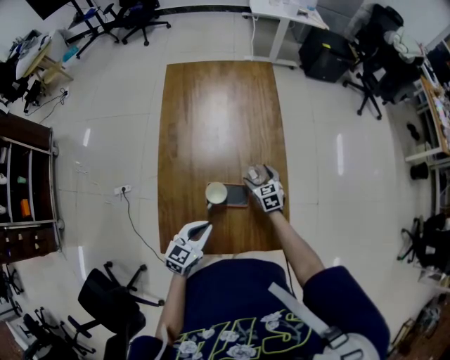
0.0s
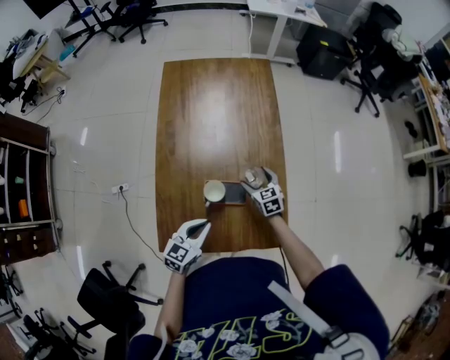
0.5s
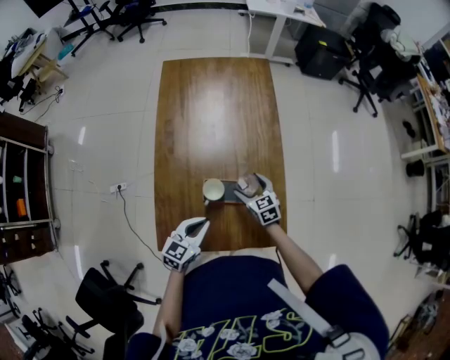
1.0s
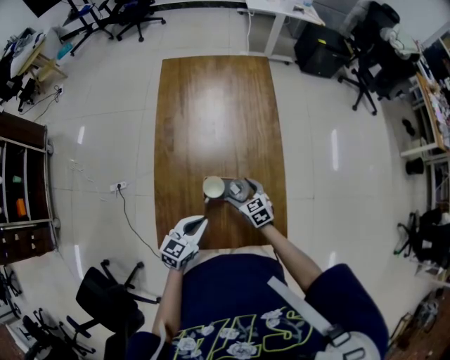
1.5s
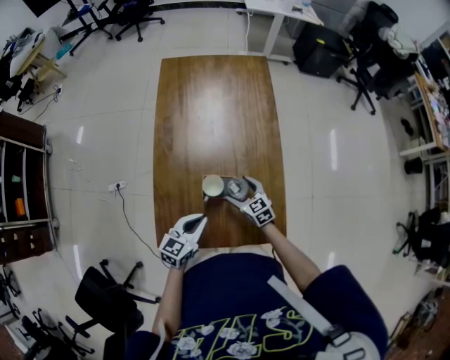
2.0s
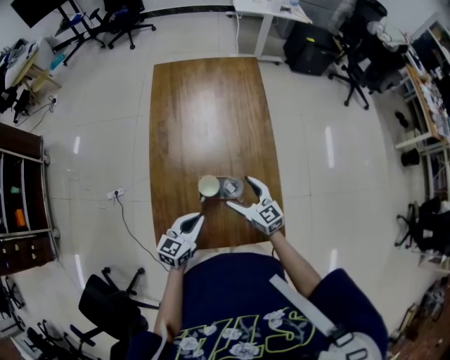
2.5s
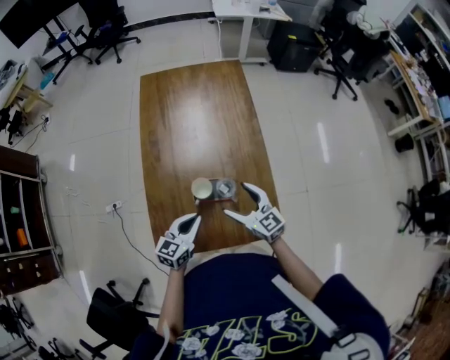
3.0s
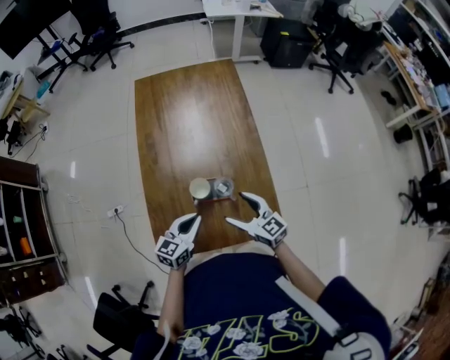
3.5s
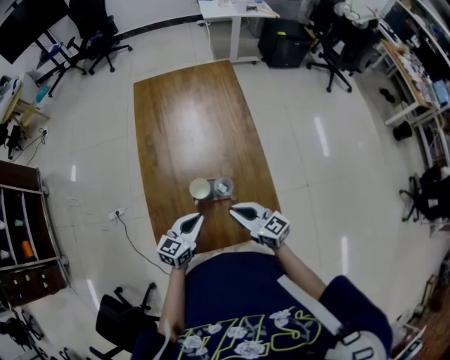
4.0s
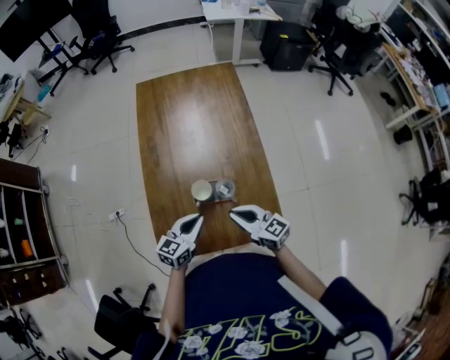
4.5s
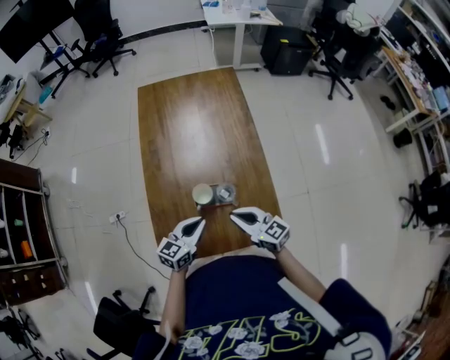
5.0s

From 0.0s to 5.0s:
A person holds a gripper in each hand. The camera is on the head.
From 0.0s to 2.5s: The right gripper heads backward, upward and to the left, covering approximately 15 cm, and rotates some 30 degrees.
From 2.5s to 5.0s: The right gripper moves backward and upward, approximately 10 cm, and closes its fingers.

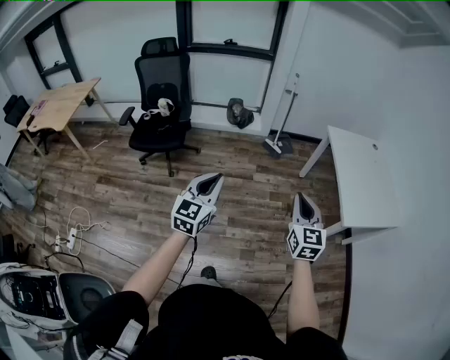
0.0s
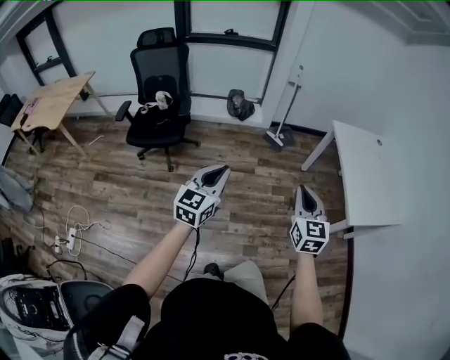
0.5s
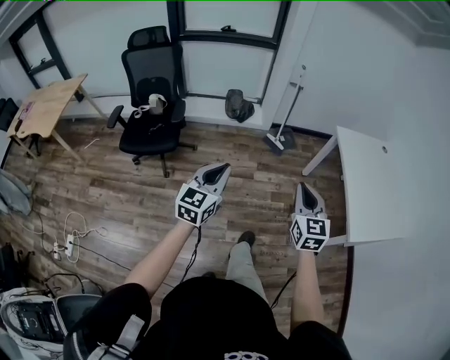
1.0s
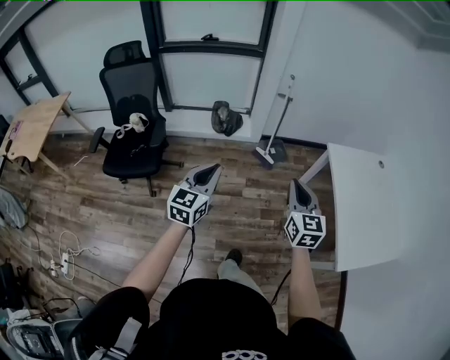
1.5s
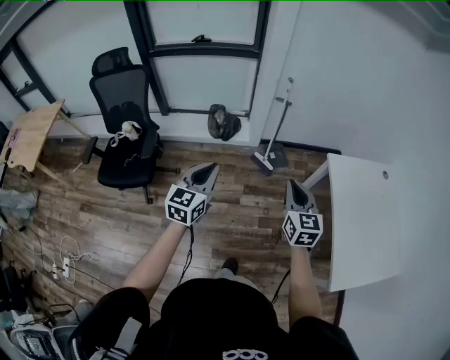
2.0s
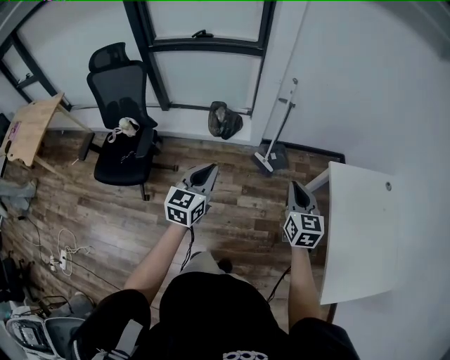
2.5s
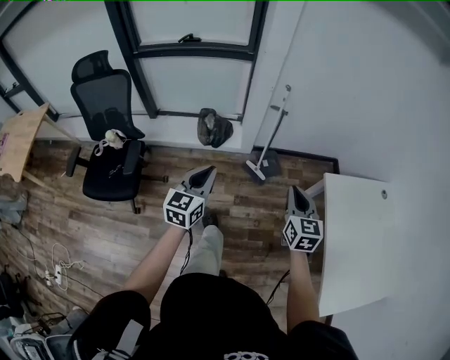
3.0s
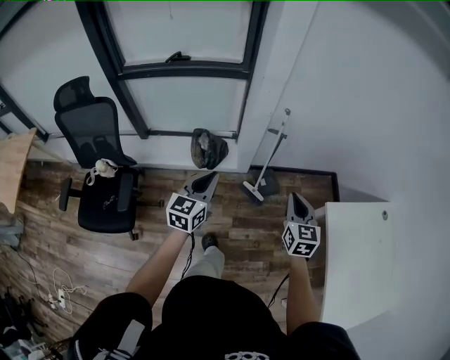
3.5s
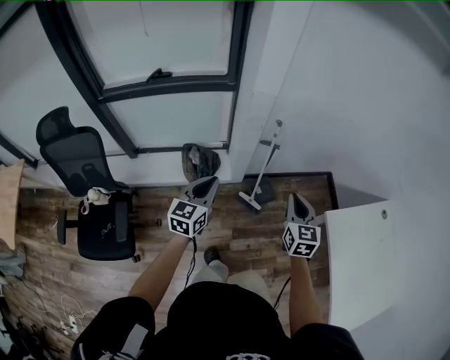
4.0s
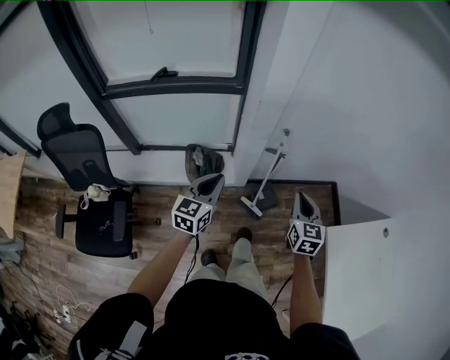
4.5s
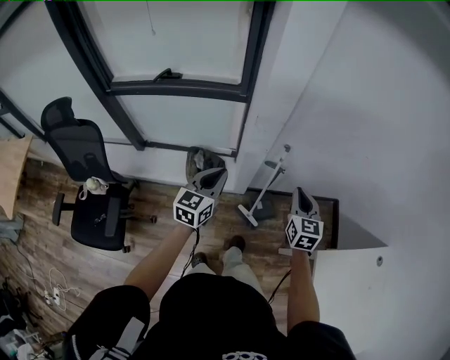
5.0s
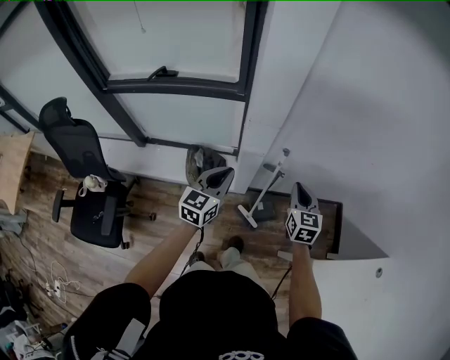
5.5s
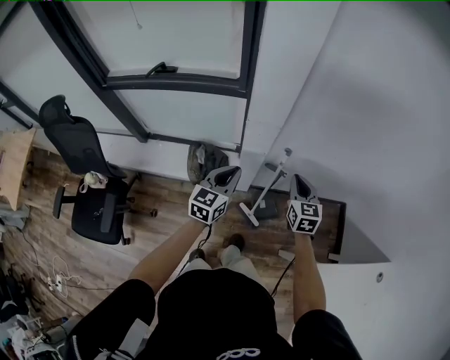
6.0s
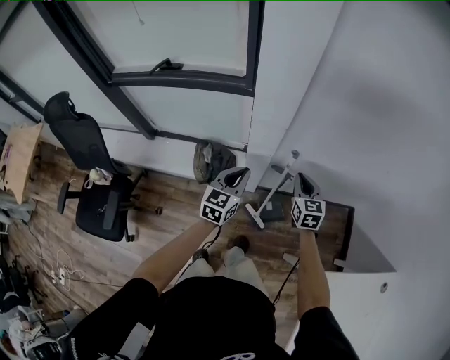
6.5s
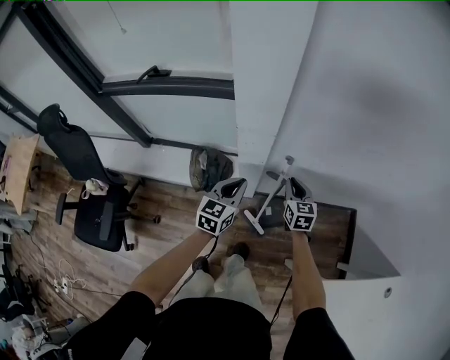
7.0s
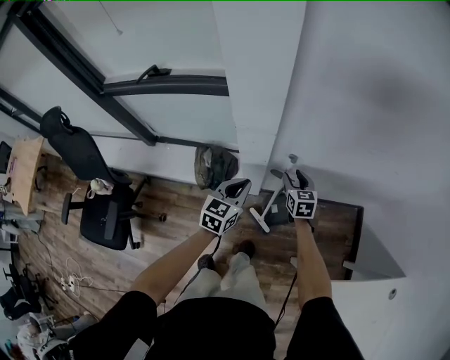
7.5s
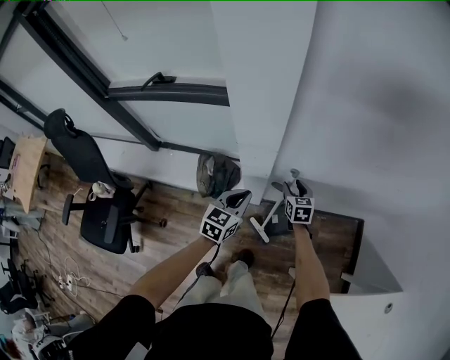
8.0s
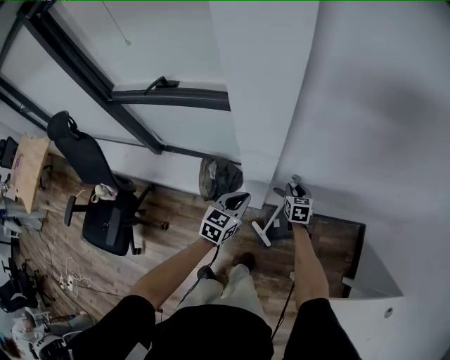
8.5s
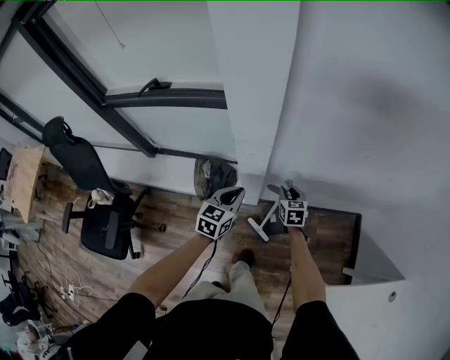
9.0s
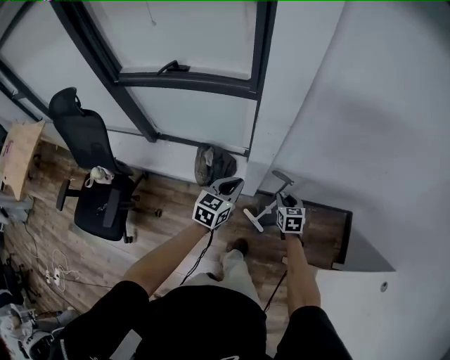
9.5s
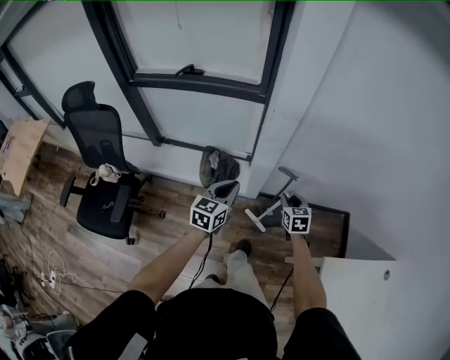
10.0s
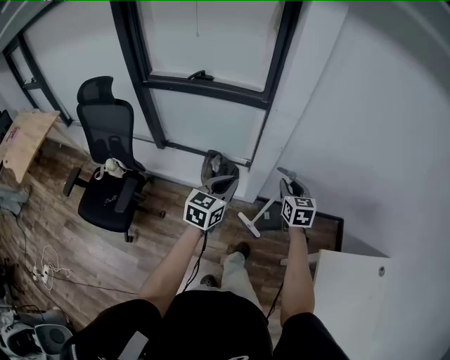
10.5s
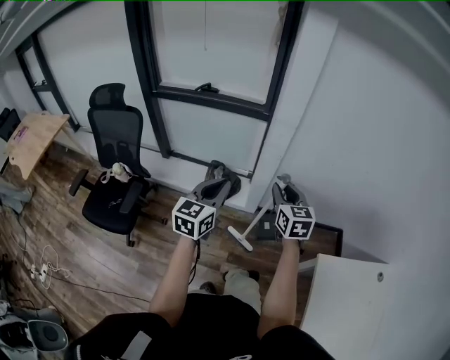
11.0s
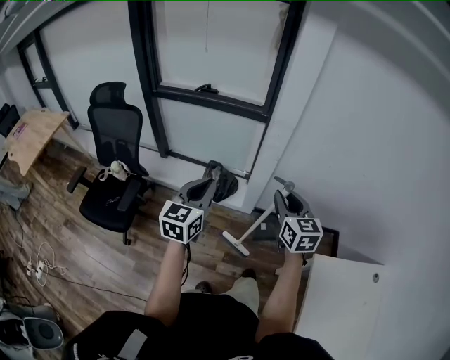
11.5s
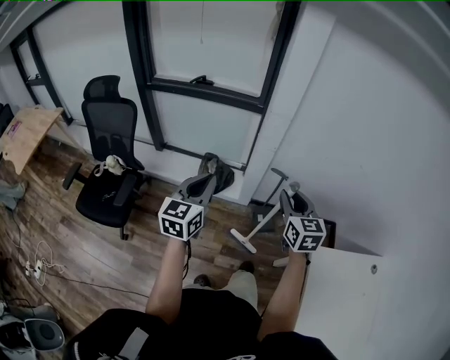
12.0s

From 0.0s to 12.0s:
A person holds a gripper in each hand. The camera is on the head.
From 0.0s to 2.0s: The pair of grippers is taken forward, roughly 50 cm.
From 2.0s to 4.0s: The two grippers travel together, forward, roughly 40 cm.
From 4.0s to 6.0s: Both grippers travel together forward, approximately 30 cm.
From 6.0s to 8.0s: The right gripper shifts approximately 25 cm downward and forward, and opens its fingers, while the left gripper heads downward and forward, covering approximately 10 cm.
From 8.0s to 10.0s: The left gripper goes about 25 cm backward, to the left and upward, while the right gripper travels backward and upward by roughly 25 cm.
From 10.0s to 12.0s: The left gripper heads backward and upward, covering roughly 25 cm; the right gripper travels upward and backward by some 35 cm, and swivels some 20 degrees.

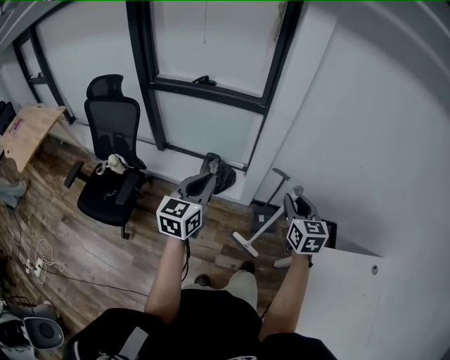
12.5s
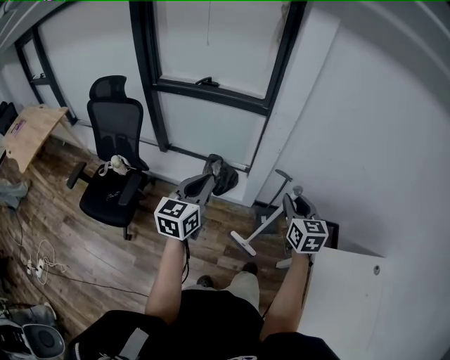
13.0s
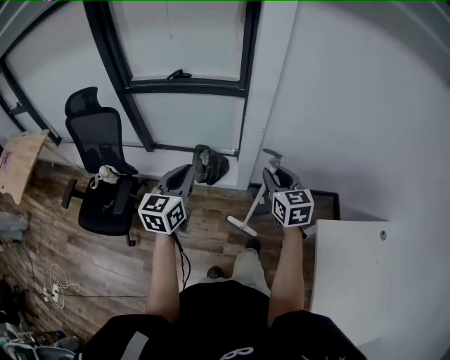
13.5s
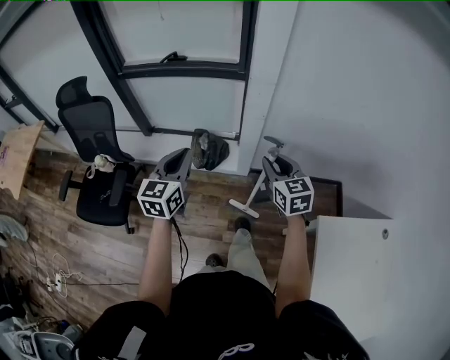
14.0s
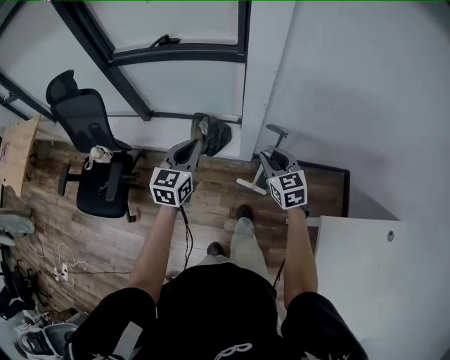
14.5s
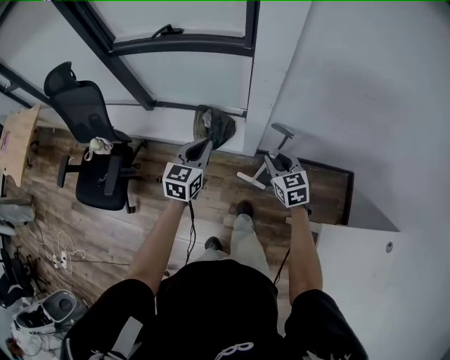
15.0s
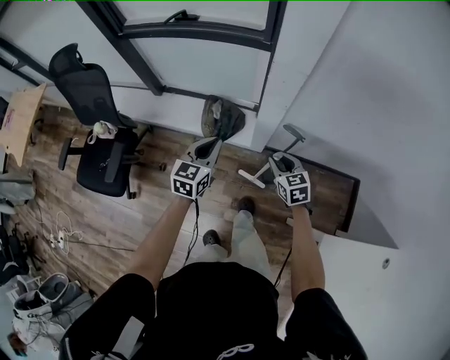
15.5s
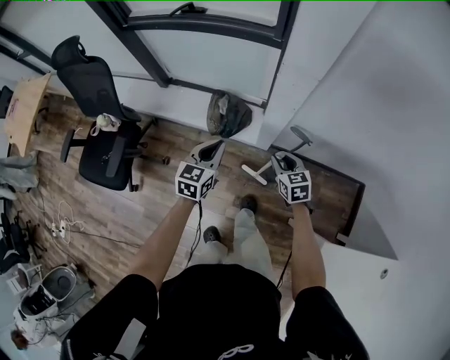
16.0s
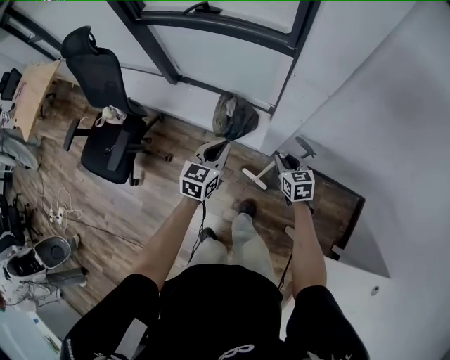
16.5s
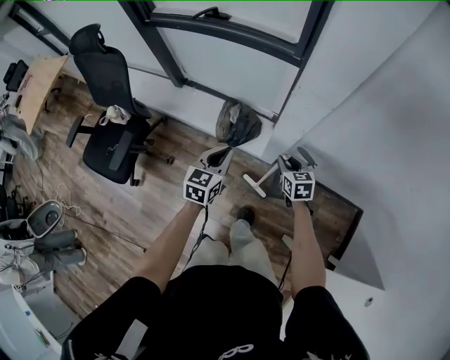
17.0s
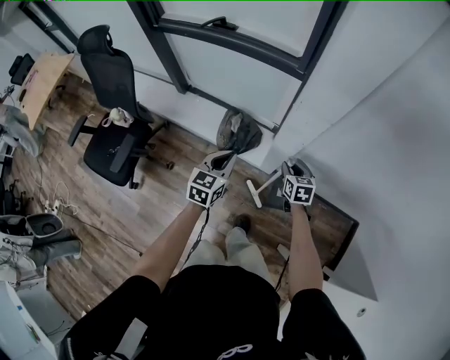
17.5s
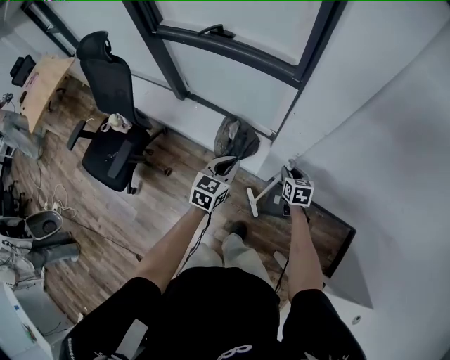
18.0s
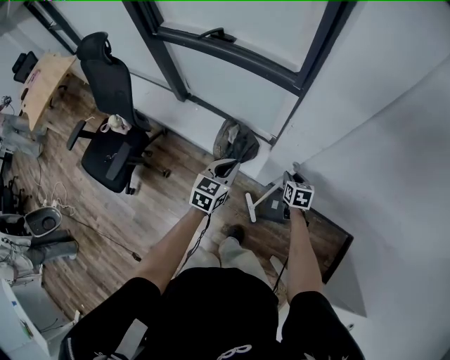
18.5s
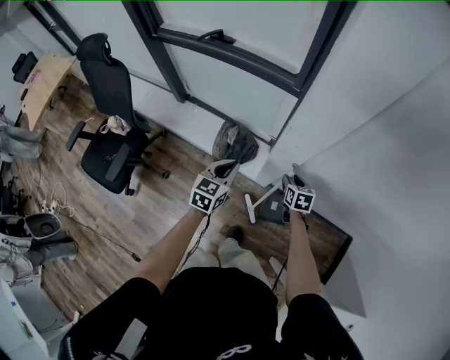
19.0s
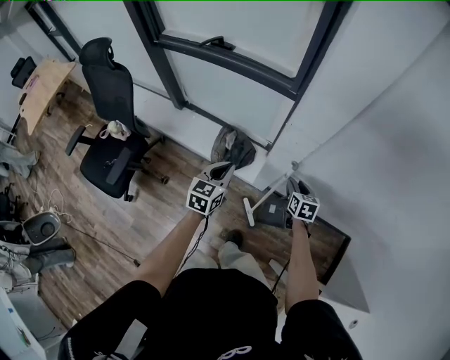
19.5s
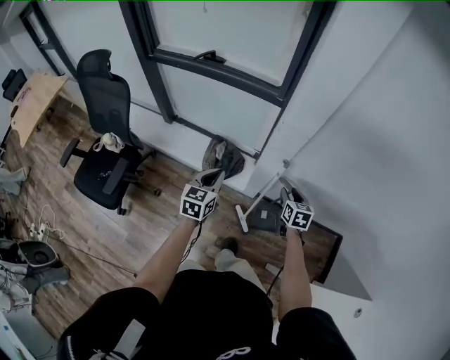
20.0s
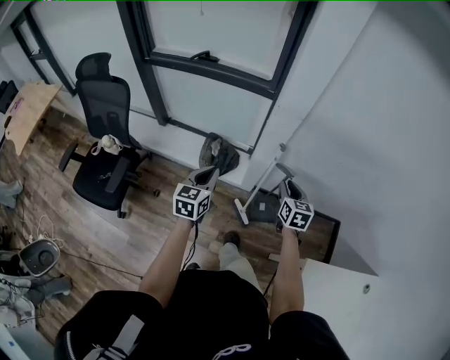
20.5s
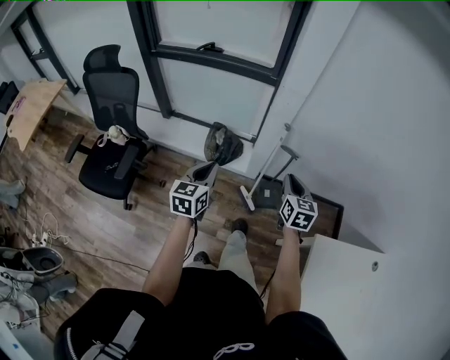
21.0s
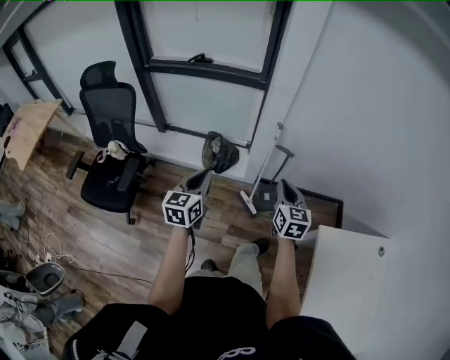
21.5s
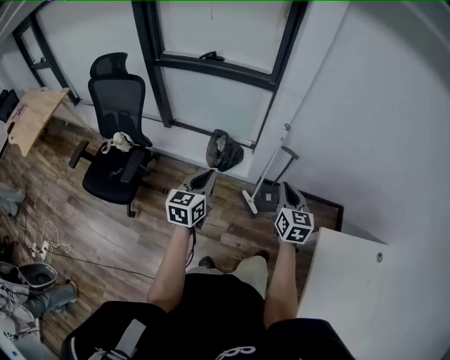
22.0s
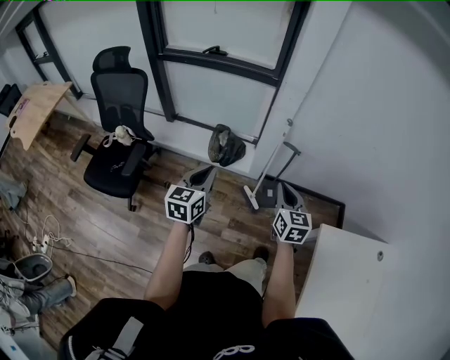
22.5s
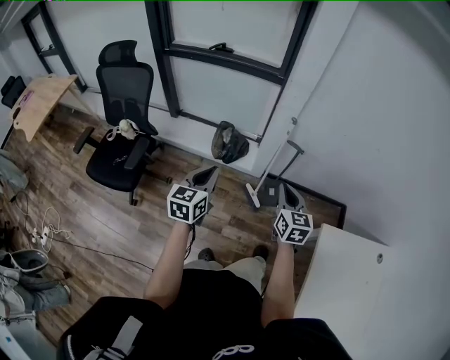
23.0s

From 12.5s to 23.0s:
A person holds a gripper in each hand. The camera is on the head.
From 12.5s to 14.5s: Both grippers travel together forward and downward, roughly 20 cm.
From 14.5s to 16.5s: The two grippers go some 20 cm downward and forward.
From 16.5s to 19.0s: The right gripper travels forward and to the right by approximately 10 cm. The left gripper goes roughly 5 cm forward.
From 19.0s to 21.0s: Both grippers move backward and upward, some 35 cm. The right gripper rotates roughly 30 degrees, and closes its fingers.
From 21.0s to 23.0s: Both grippers move backward, roughly 10 cm.
